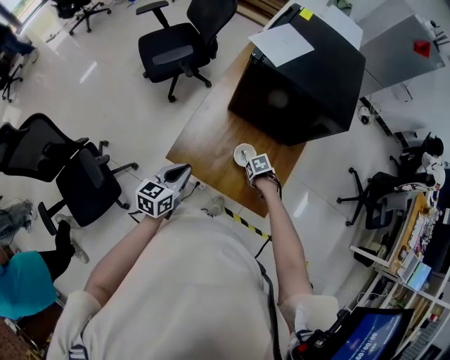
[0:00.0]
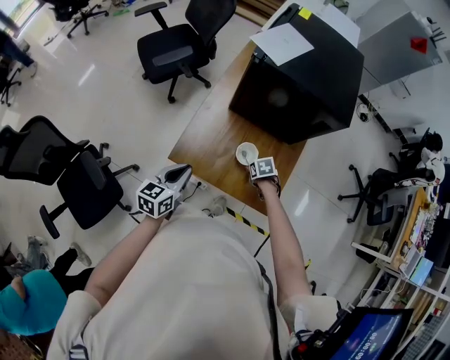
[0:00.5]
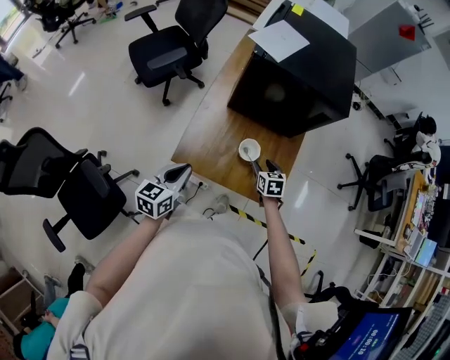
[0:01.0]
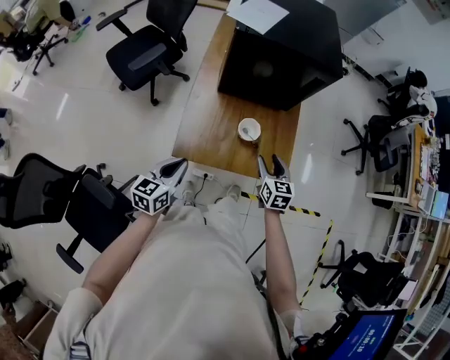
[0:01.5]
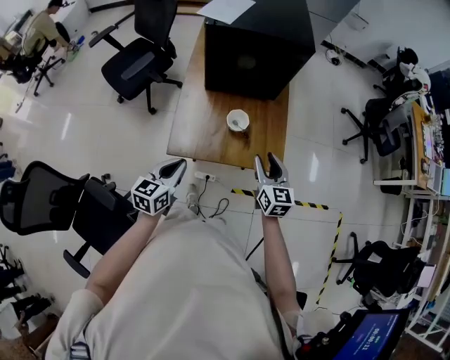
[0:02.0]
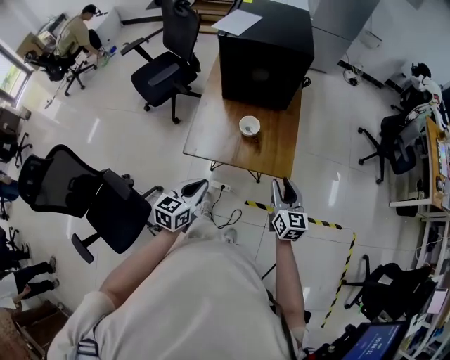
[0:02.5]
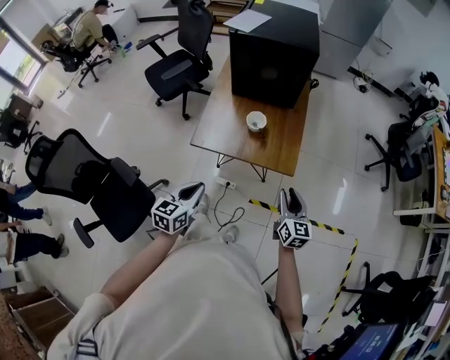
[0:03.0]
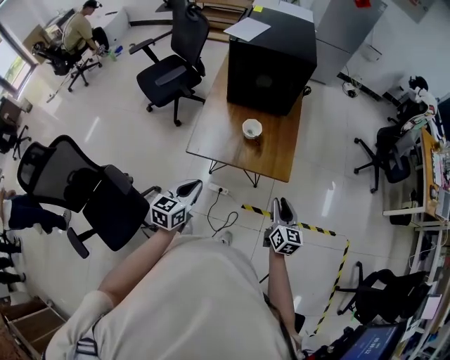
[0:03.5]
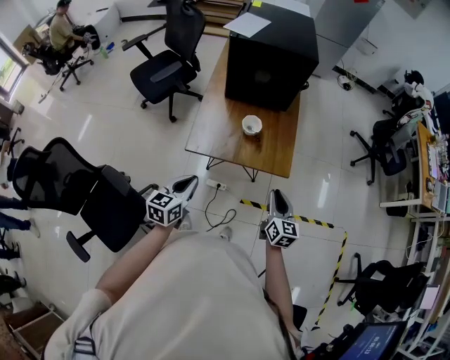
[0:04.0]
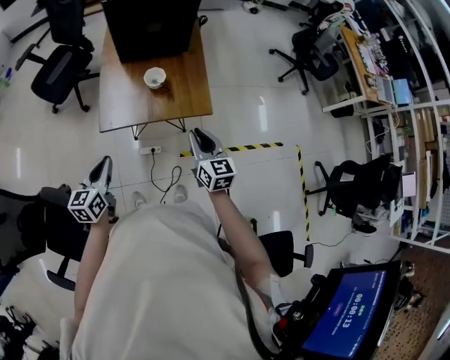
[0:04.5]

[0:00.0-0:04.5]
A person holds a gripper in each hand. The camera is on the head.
0:00.0 to 0:02.0: The left gripper moves about 5 cm. Meanwhile the right gripper shifts about 25 cm upward, and tilts its fingers roughly 60 degrees upward.
0:02.0 to 0:04.5: The grippers both shift backward by some 10 cm. The right gripper closes up.

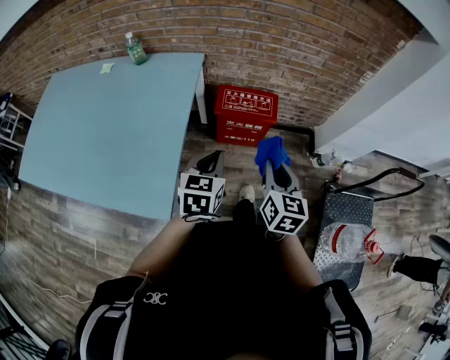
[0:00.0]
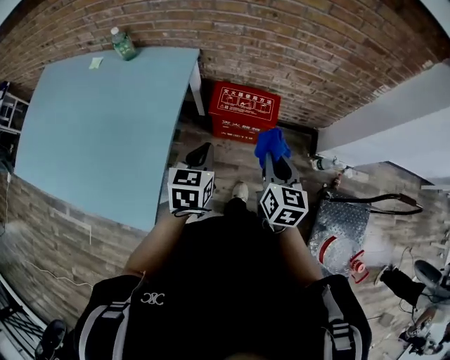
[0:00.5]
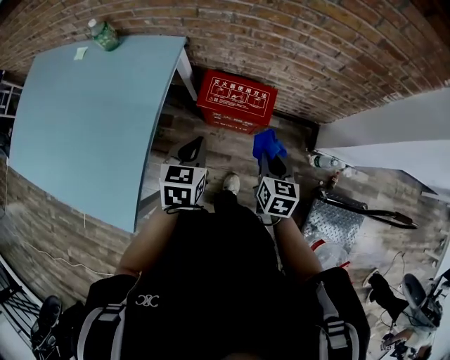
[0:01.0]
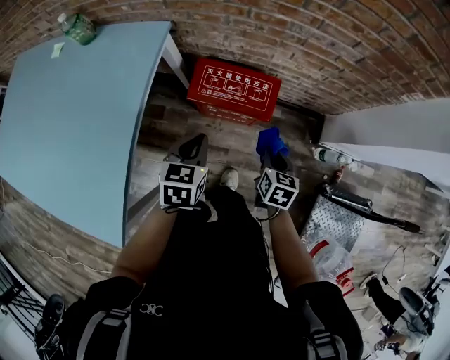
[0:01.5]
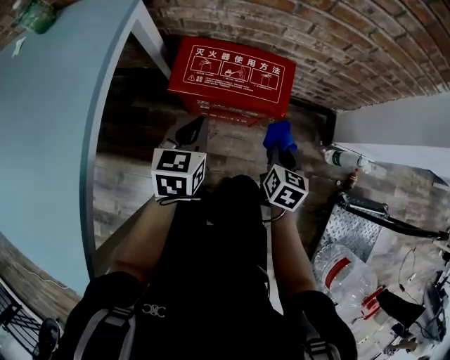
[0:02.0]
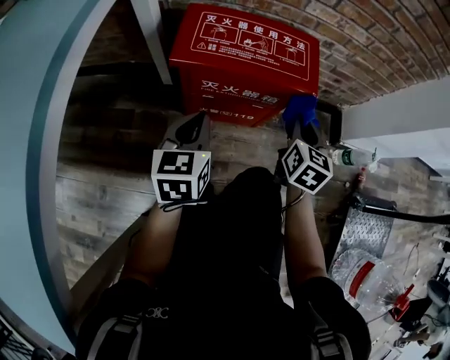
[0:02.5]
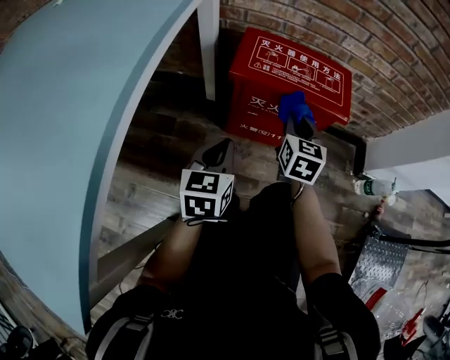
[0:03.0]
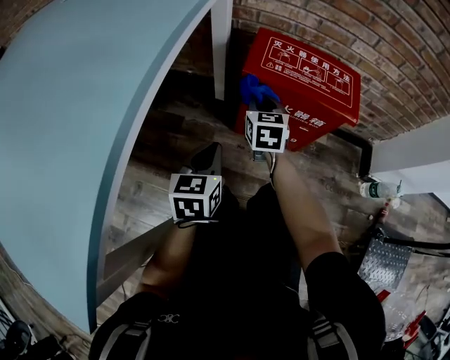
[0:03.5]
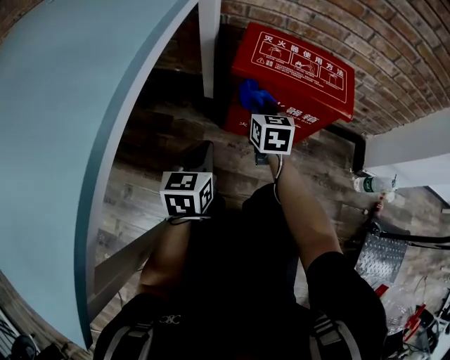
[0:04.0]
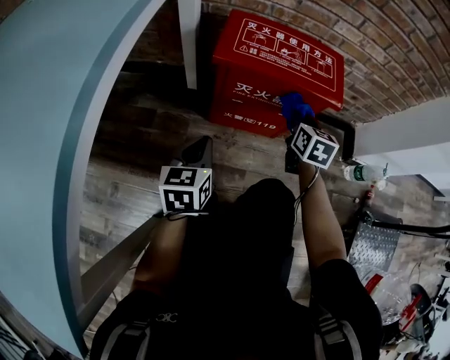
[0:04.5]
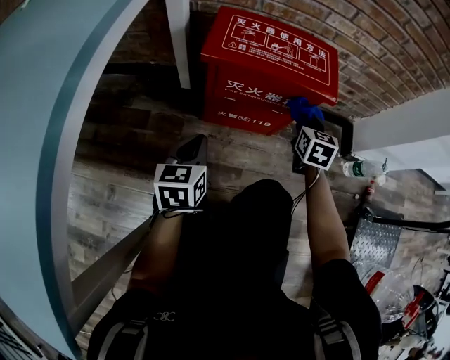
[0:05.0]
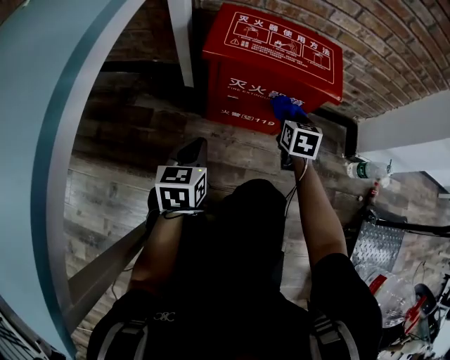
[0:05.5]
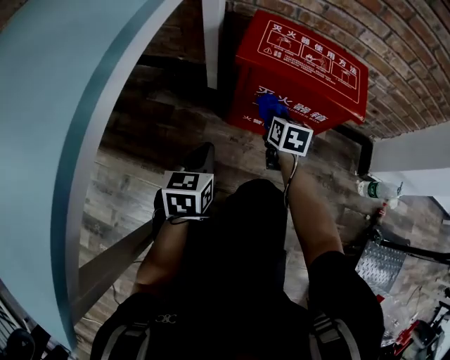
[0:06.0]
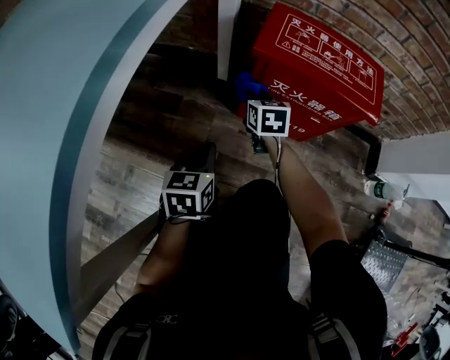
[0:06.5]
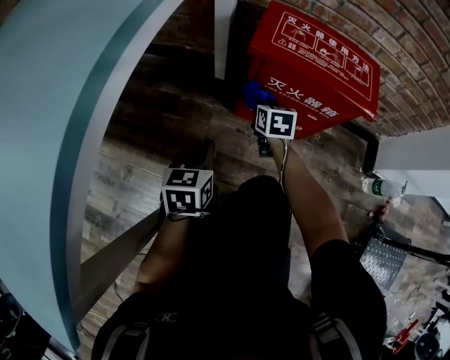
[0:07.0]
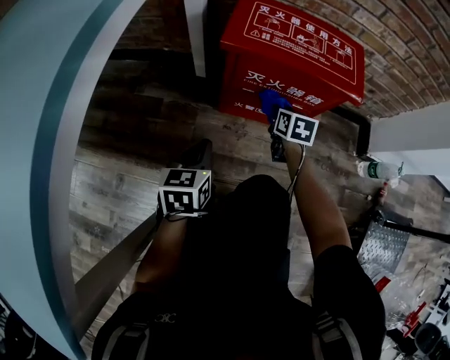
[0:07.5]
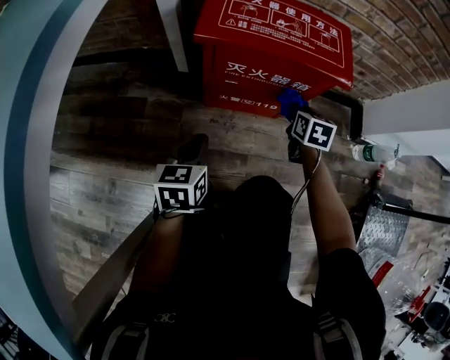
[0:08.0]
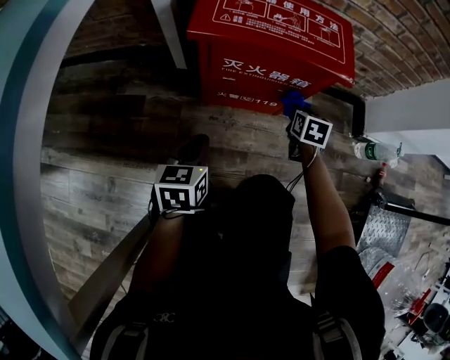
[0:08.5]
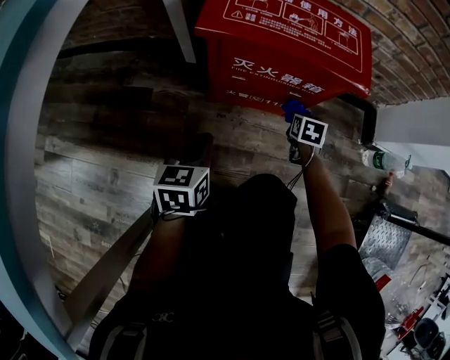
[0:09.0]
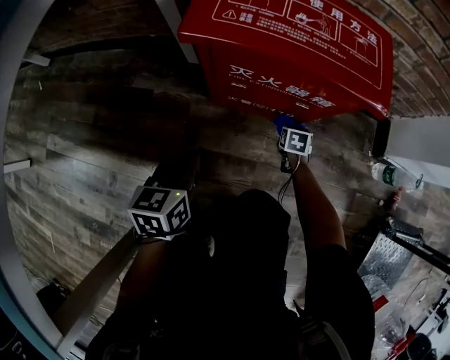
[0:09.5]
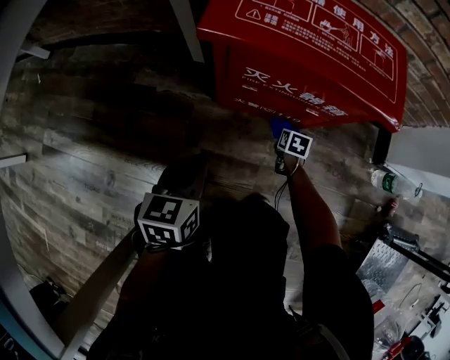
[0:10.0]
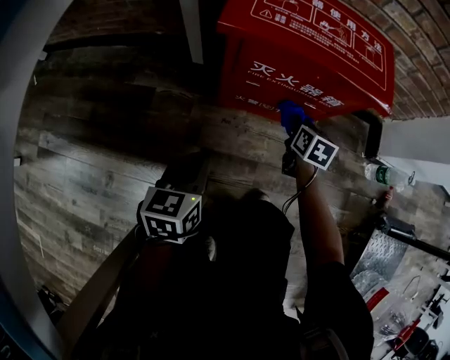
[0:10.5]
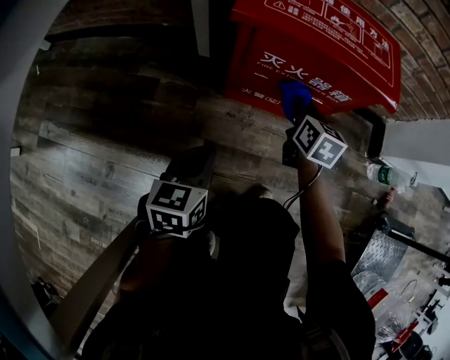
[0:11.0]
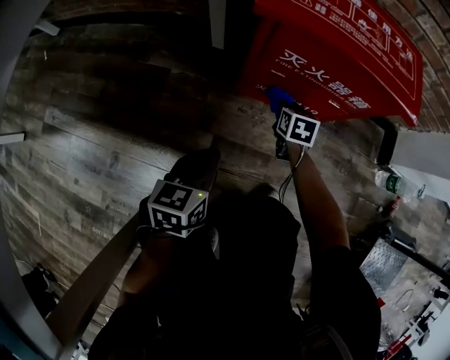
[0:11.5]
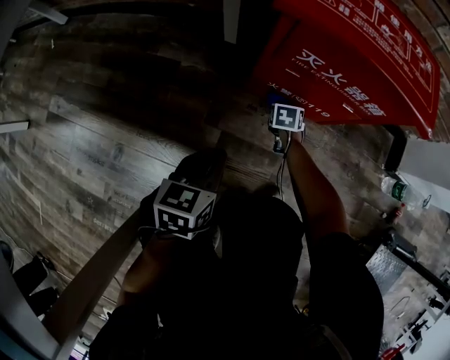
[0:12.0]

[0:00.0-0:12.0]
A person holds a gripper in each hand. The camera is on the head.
0:00.0 to 0:02.0: The two grippers go about 50 cm downward and forward.
0:02.0 to 0:04.0: The left gripper moves downward, to the left and backward, some 25 cm; the right gripper is displaced to the left by roughly 25 cm, and swivels approximately 30 degrees.
0:04.0 to 0:06.0: The right gripper is displaced downward by about 10 cm, and goes to the right and returns, approximately 25 cm each way.
0:06.0 to 0:08.0: The left gripper shifts by about 5 cm, while the right gripper goes approximately 15 cm to the right.
0:08.0 to 0:10.0: The right gripper travels downward by approximately 25 cm.
0:10.0 to 0:12.0: The left gripper goes approximately 5 cm backward; the right gripper heads to the left, covering some 15 cm, and reaches about 25 cm upward, then returns.

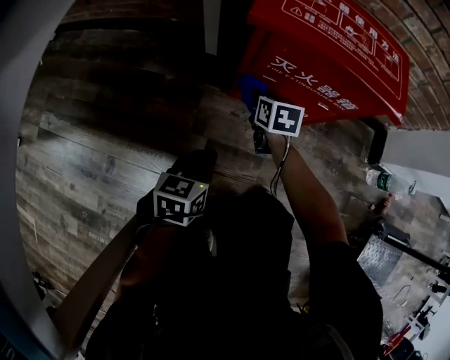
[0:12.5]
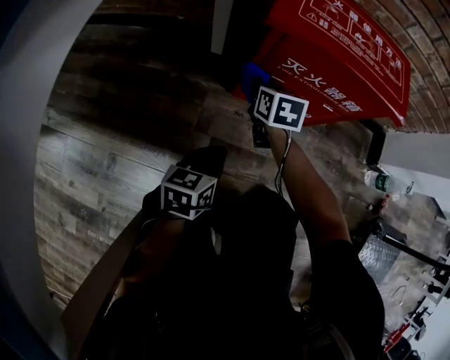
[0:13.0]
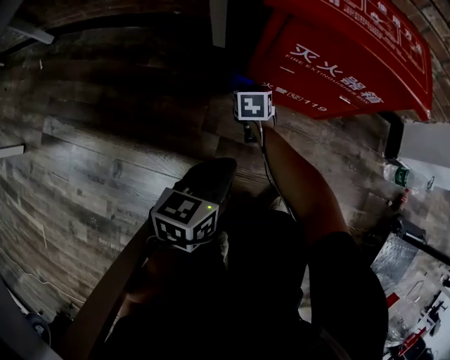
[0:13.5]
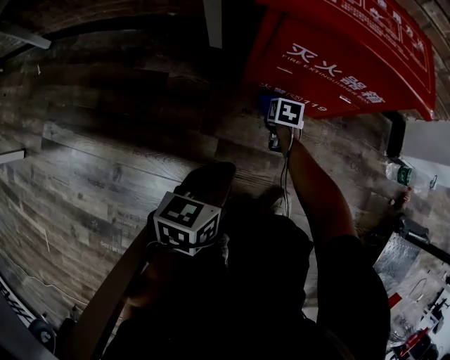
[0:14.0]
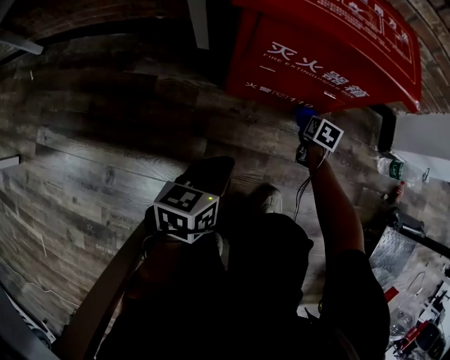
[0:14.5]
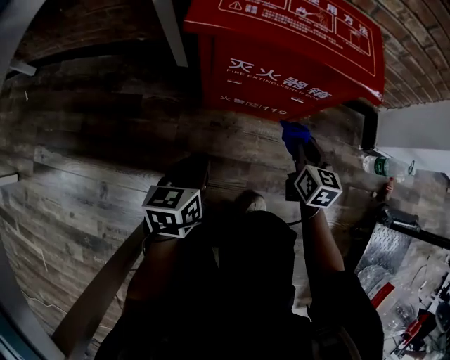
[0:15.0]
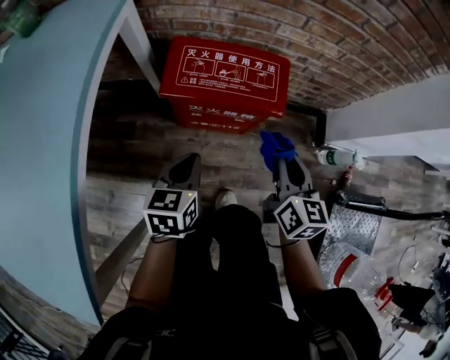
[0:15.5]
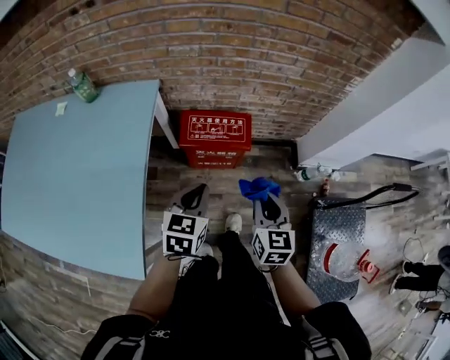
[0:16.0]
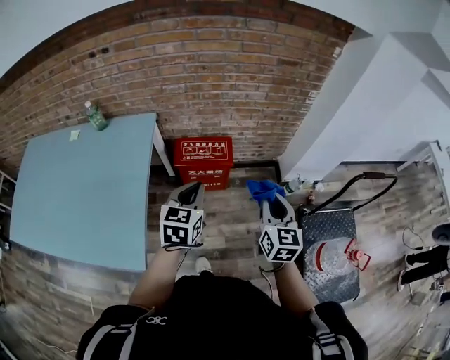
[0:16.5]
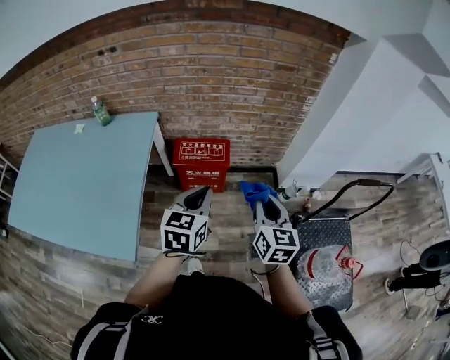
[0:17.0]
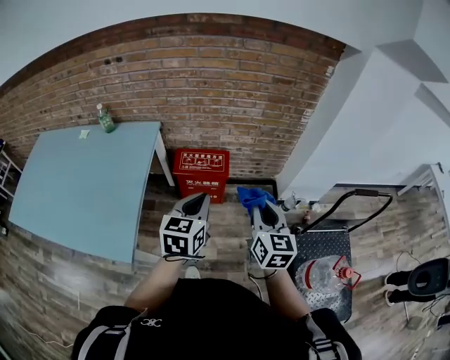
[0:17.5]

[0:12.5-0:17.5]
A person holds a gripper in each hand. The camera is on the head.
0:12.5 to 0:15.0: The right gripper moves to the right, some 20 cm, and rotates approximately 20 degrees. Meanwhile the left gripper changes place by some 5 cm.
0:15.0 to 0:17.5: The right gripper moves upward and backward, approximately 90 cm, and turns by approximately 20 degrees. Meanwhile the left gripper shifts some 80 cm upward, and swivels roughly 30 degrees.

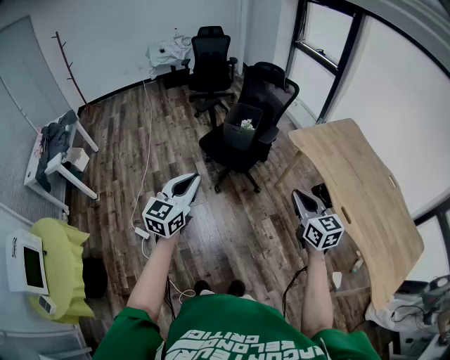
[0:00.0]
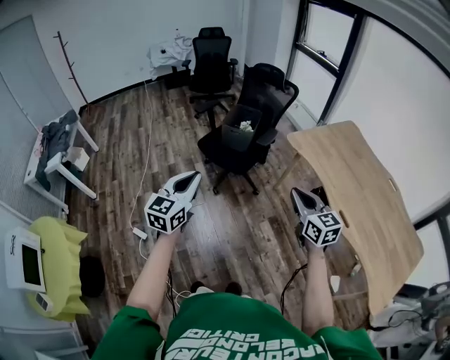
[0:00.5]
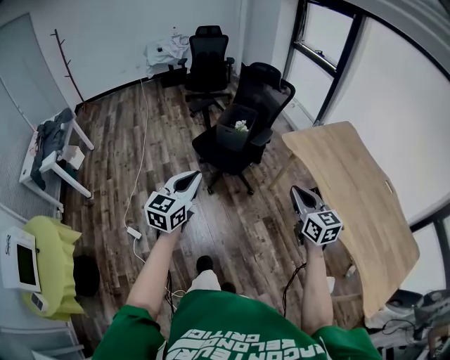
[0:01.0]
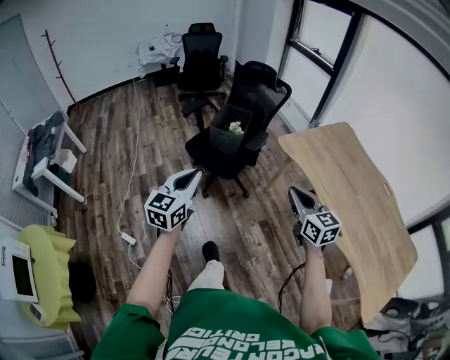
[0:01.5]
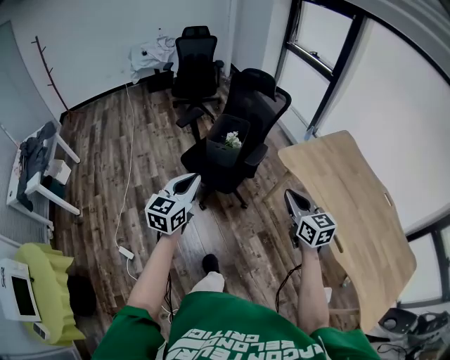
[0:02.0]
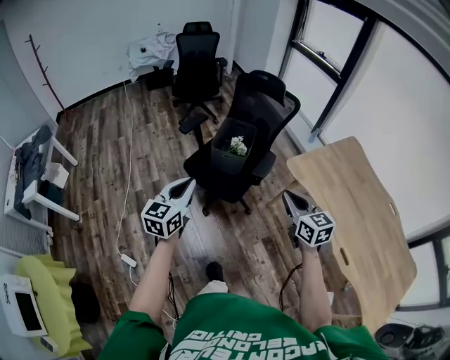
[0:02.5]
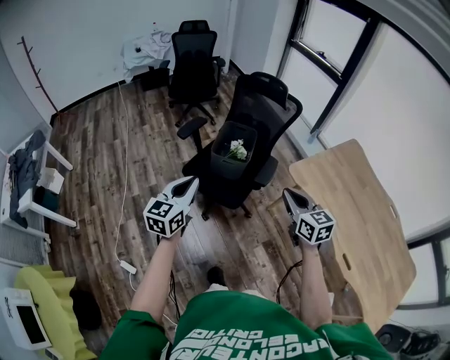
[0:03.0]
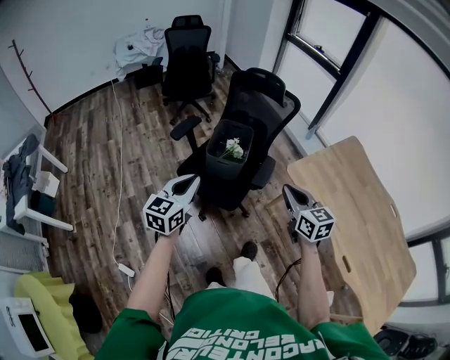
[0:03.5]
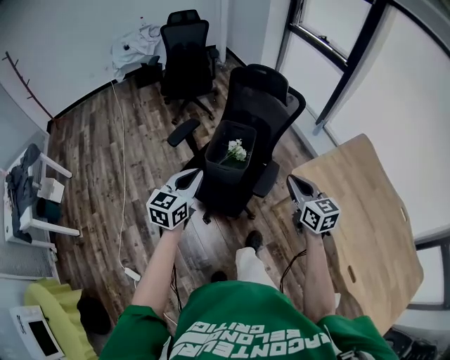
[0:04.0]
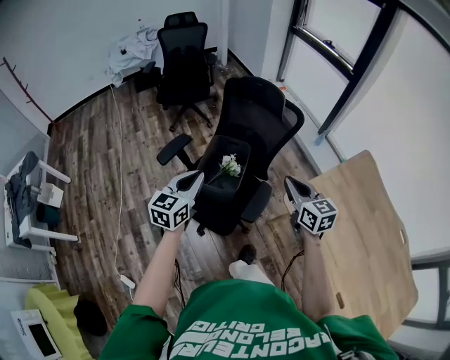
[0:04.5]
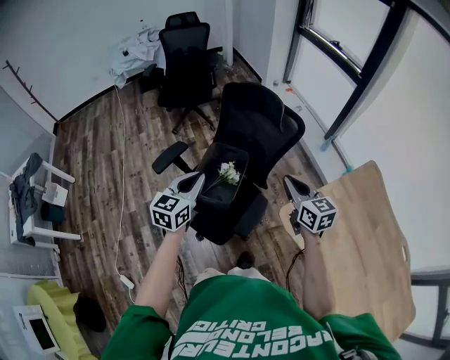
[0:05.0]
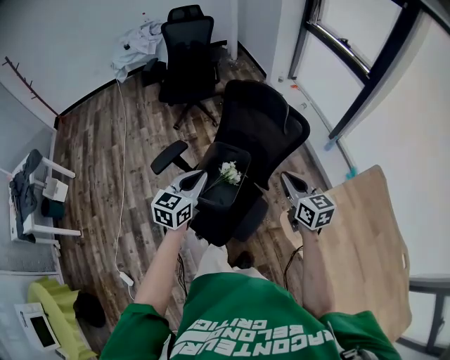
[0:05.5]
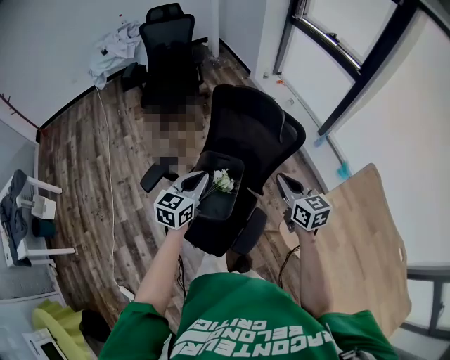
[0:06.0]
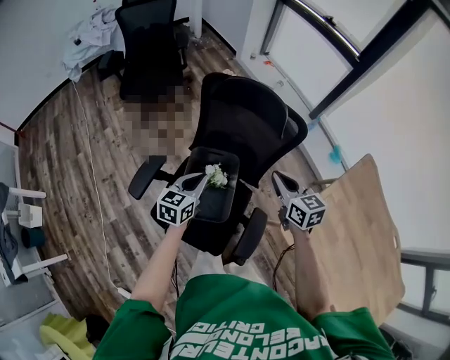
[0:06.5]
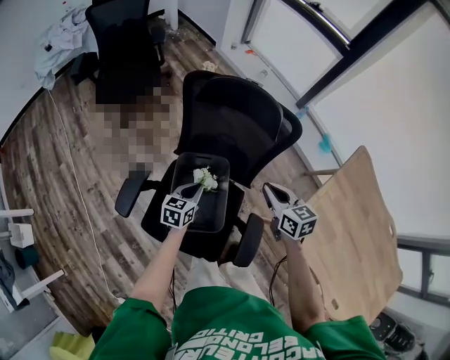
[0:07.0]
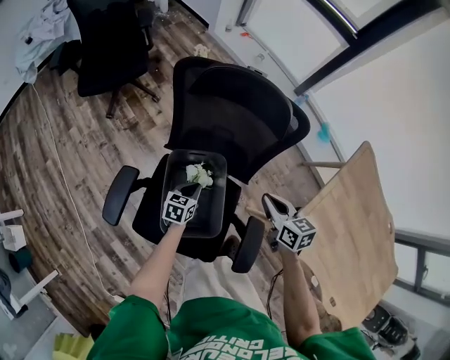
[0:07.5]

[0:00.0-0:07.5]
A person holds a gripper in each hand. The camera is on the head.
0:00.0 to 0:02.0: The two grippers go approximately 20 cm forward.
0:02.0 to 0:04.0: Both grippers travel together forward, roughly 30 cm.
0:04.0 to 0:05.5: The right gripper shifts some 25 cm forward. Meanwhile the left gripper travels forward and to the right by some 25 cm.
0:05.5 to 0:07.5: The left gripper shifts about 40 cm downward and forward, and changes its angle by about 40 degrees. The right gripper is displaced downward and forward by about 20 cm, and swivels approximately 30 degrees.
